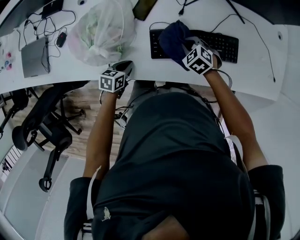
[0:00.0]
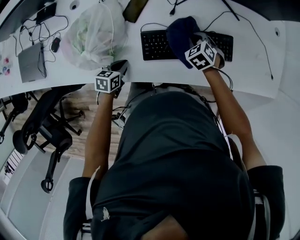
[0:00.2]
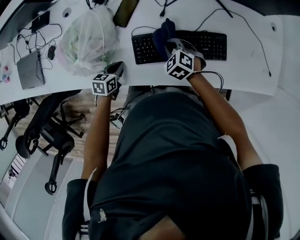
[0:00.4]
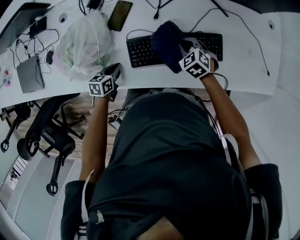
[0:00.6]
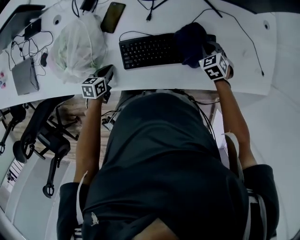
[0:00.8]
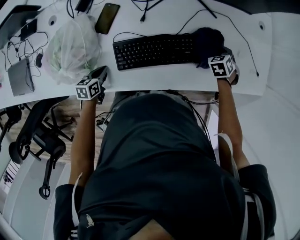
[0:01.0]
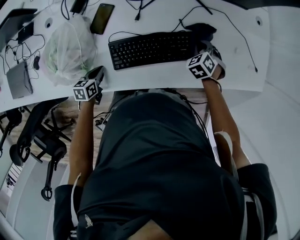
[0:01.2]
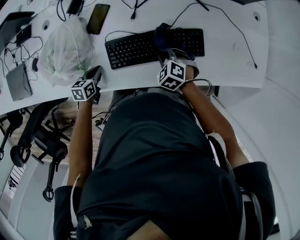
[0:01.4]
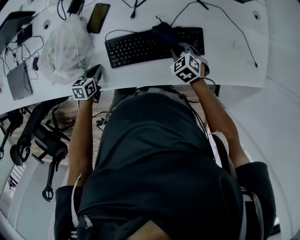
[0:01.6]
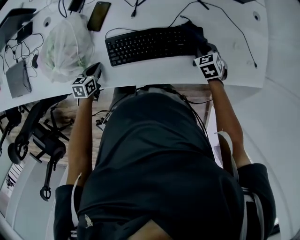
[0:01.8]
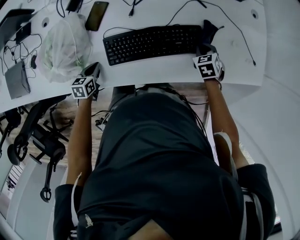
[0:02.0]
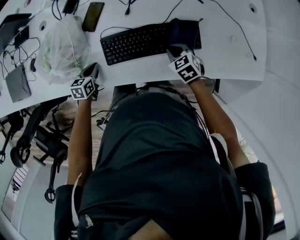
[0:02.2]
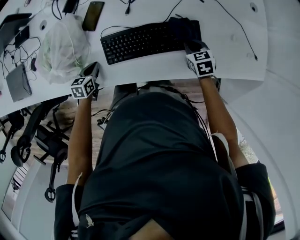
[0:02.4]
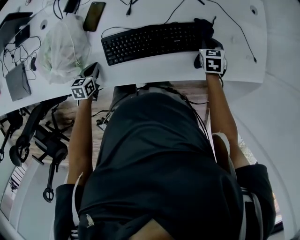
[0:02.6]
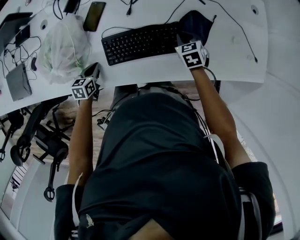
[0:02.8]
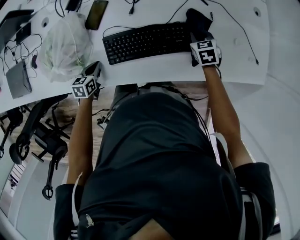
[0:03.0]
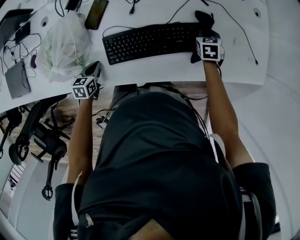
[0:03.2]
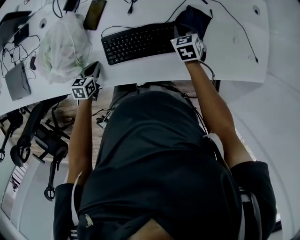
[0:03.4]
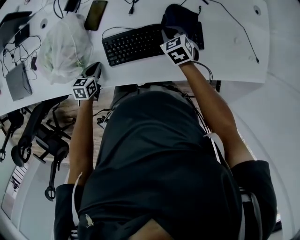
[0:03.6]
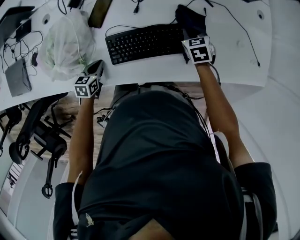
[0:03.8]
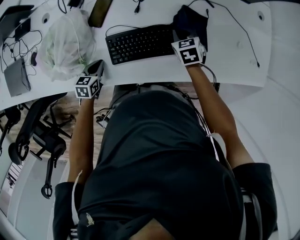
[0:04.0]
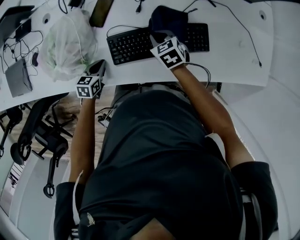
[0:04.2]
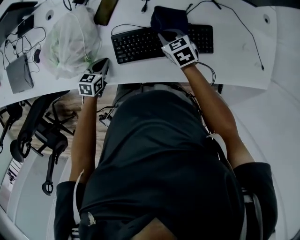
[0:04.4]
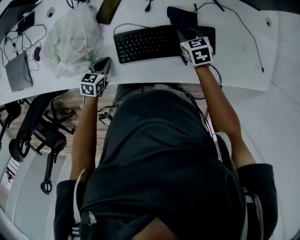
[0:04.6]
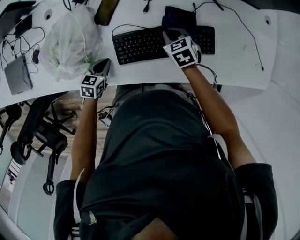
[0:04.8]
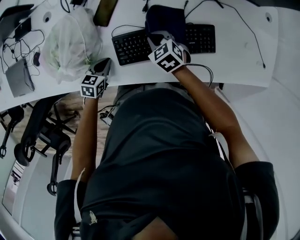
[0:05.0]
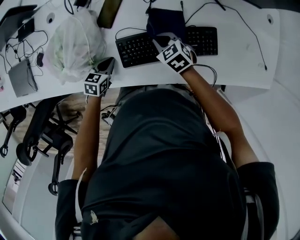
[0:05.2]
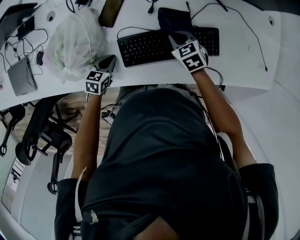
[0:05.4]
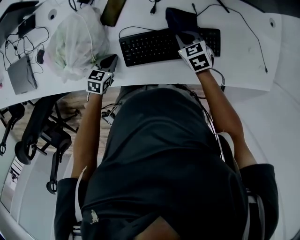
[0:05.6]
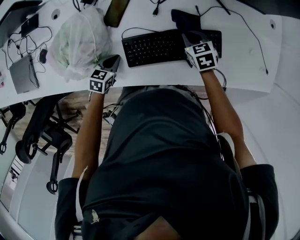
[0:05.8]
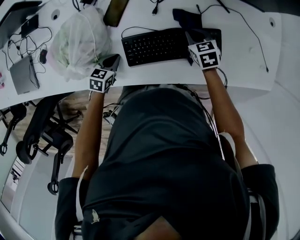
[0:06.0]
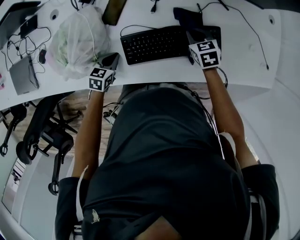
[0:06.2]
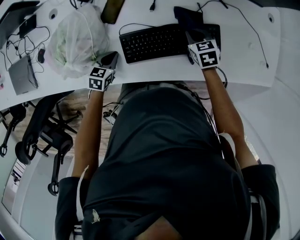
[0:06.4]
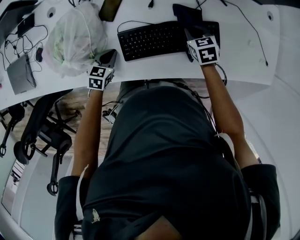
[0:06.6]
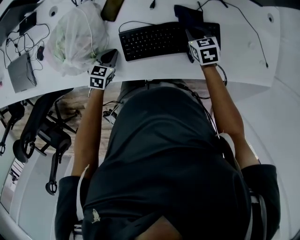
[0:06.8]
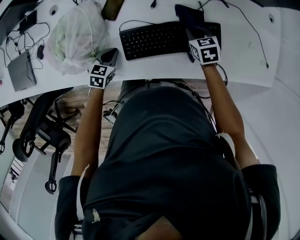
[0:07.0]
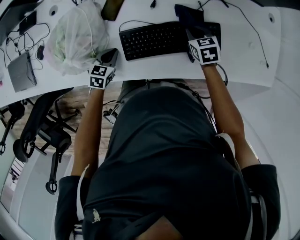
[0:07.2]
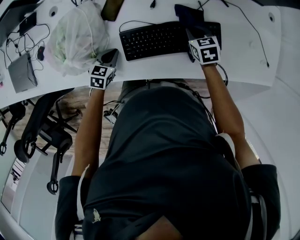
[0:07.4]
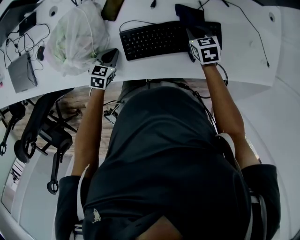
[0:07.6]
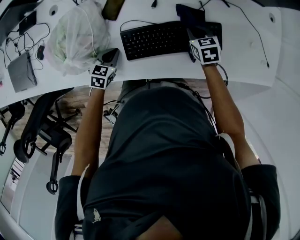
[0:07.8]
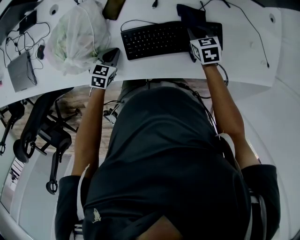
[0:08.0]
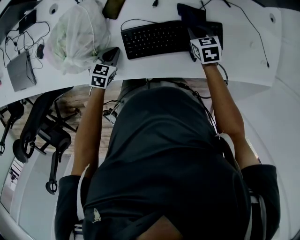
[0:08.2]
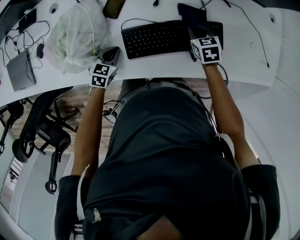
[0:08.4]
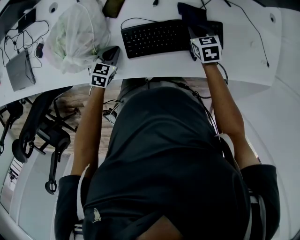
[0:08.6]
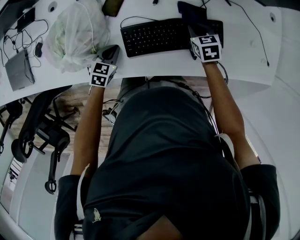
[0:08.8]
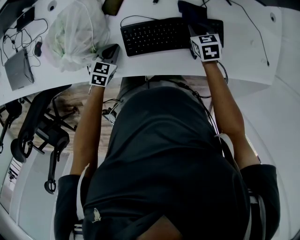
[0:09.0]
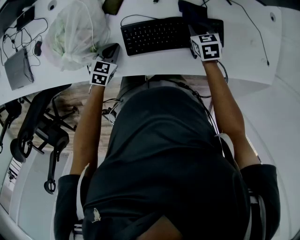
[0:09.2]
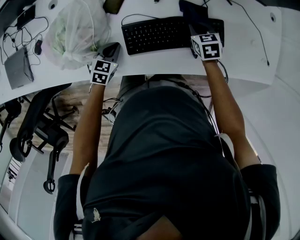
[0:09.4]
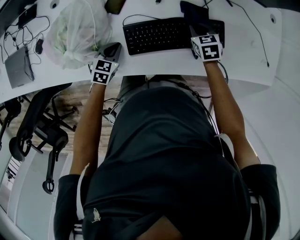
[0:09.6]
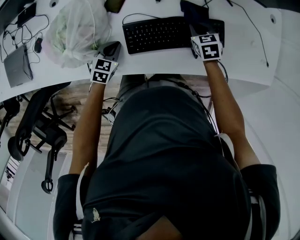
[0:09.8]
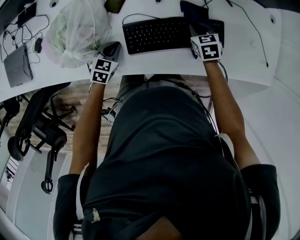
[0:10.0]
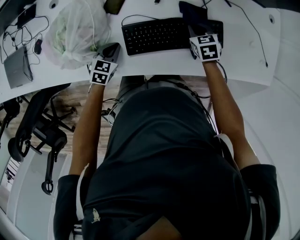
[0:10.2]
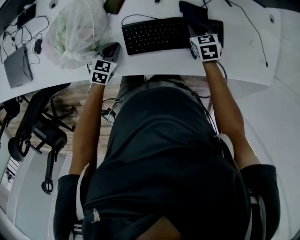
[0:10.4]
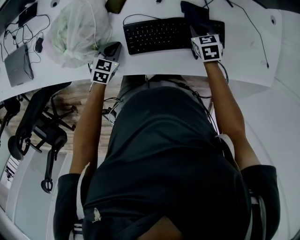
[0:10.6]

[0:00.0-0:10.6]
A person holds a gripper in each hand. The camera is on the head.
0.0 to 1.6 s: The left gripper changes place by some 5 cm.
1.6 to 3.0 s: The right gripper goes left and right, about 15 cm each way, reversing 4 times, and turns by approximately 20 degrees.
3.0 to 4.6 s: The right gripper moves left and right over some 25 cm, changing direction 4 times.
4.6 to 6.0 s: The right gripper moves about 10 cm to the left and comes back.
6.0 to 9.0 s: The grippers move only a little.
9.0 to 10.6 s: Both grippers stay put.

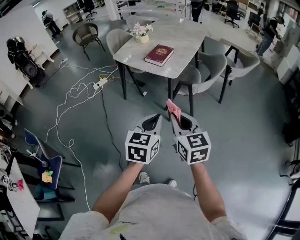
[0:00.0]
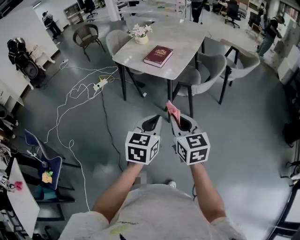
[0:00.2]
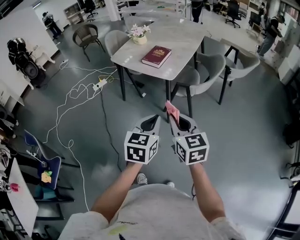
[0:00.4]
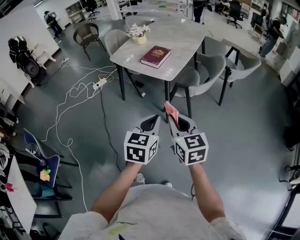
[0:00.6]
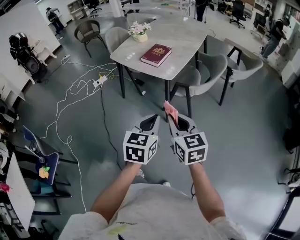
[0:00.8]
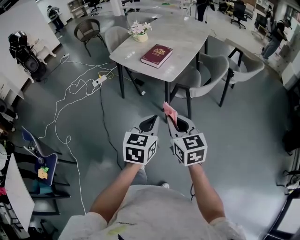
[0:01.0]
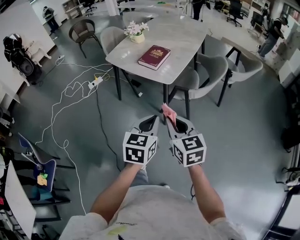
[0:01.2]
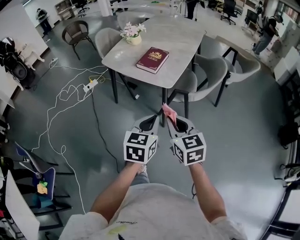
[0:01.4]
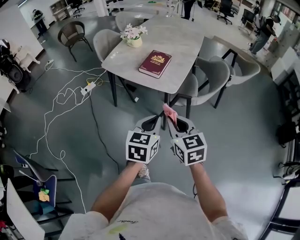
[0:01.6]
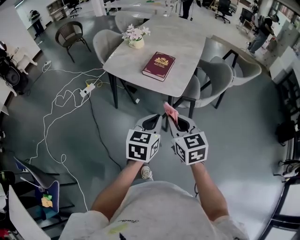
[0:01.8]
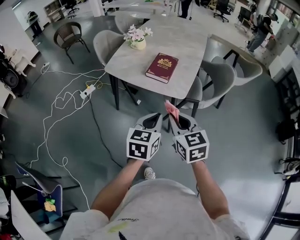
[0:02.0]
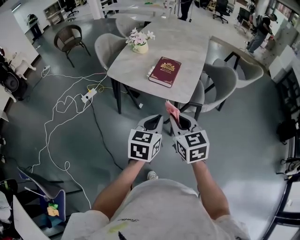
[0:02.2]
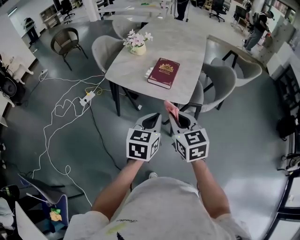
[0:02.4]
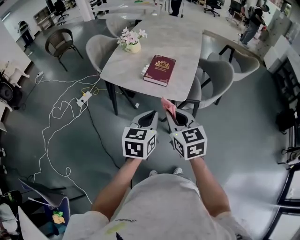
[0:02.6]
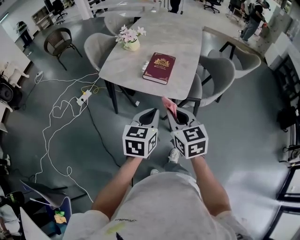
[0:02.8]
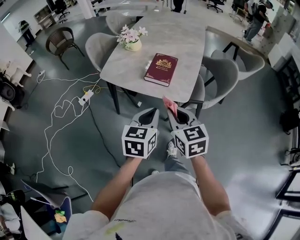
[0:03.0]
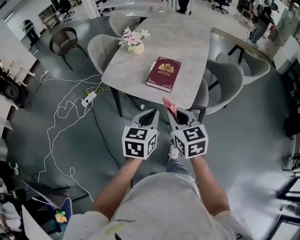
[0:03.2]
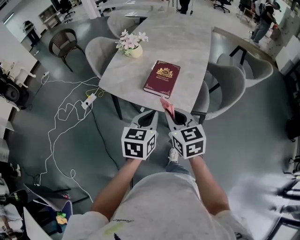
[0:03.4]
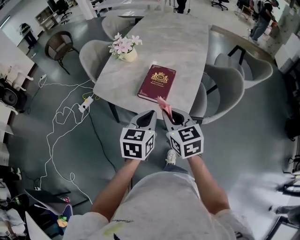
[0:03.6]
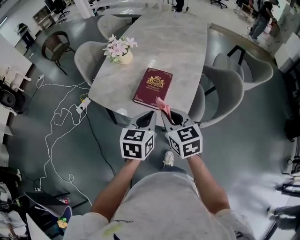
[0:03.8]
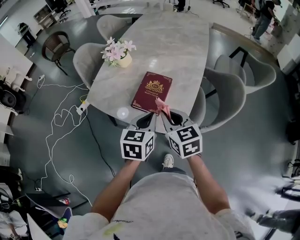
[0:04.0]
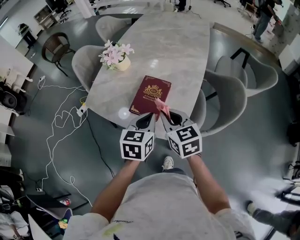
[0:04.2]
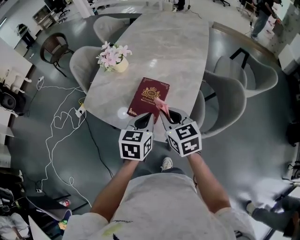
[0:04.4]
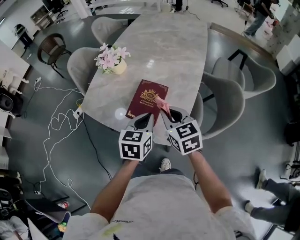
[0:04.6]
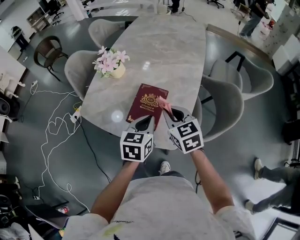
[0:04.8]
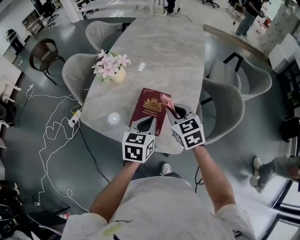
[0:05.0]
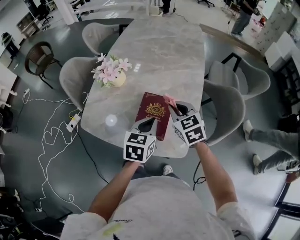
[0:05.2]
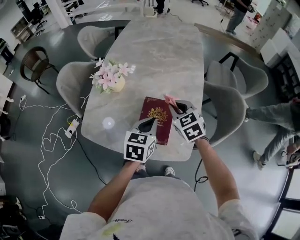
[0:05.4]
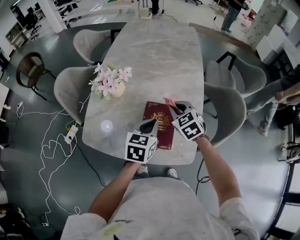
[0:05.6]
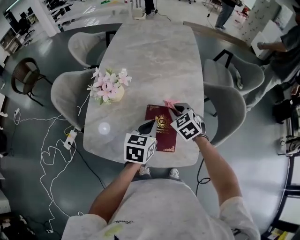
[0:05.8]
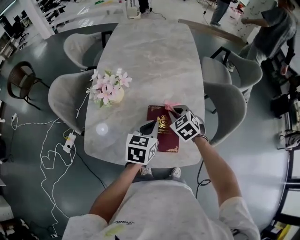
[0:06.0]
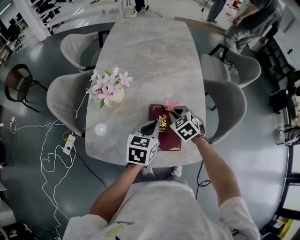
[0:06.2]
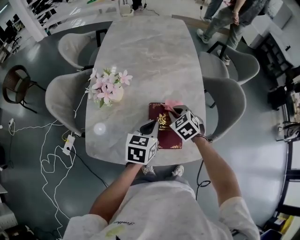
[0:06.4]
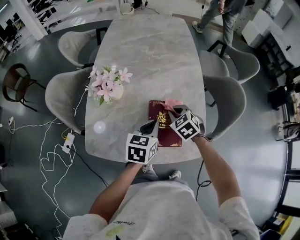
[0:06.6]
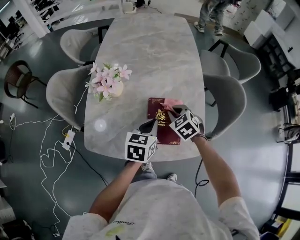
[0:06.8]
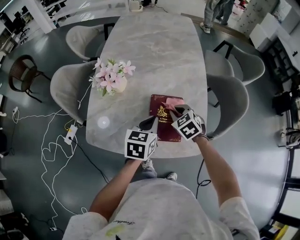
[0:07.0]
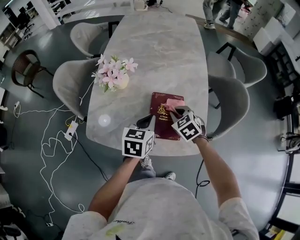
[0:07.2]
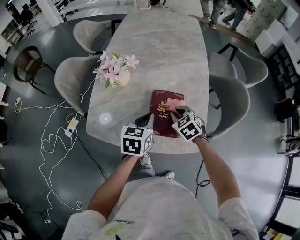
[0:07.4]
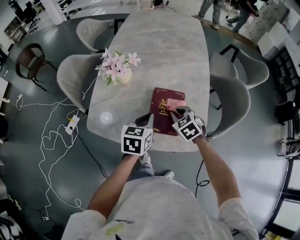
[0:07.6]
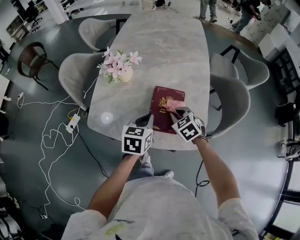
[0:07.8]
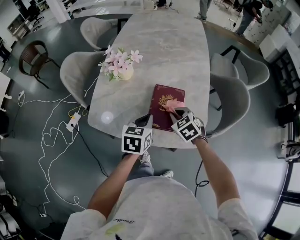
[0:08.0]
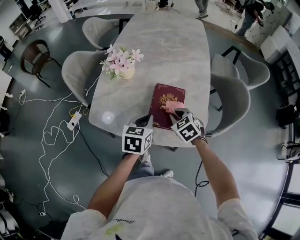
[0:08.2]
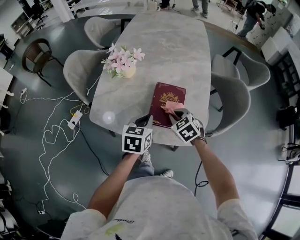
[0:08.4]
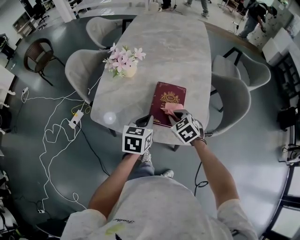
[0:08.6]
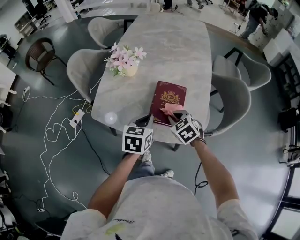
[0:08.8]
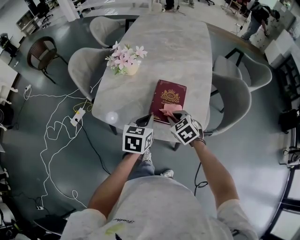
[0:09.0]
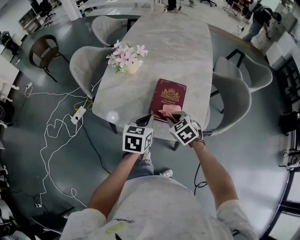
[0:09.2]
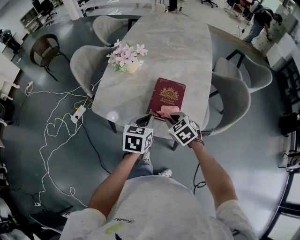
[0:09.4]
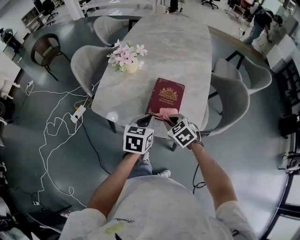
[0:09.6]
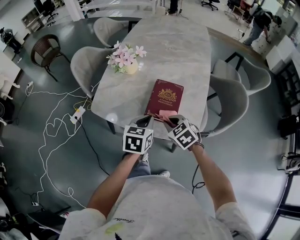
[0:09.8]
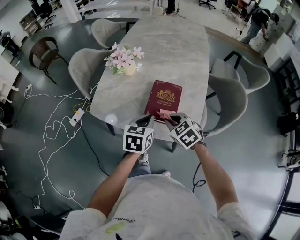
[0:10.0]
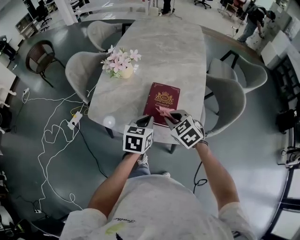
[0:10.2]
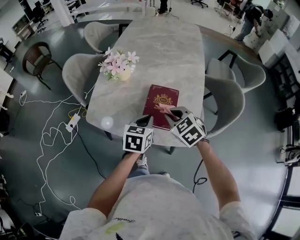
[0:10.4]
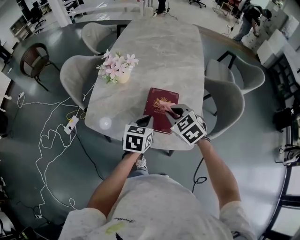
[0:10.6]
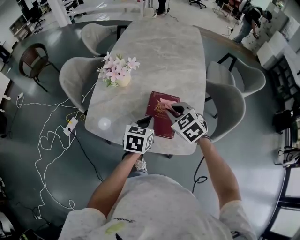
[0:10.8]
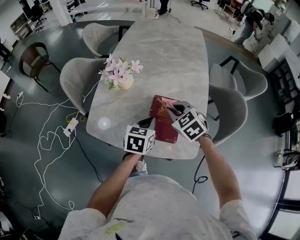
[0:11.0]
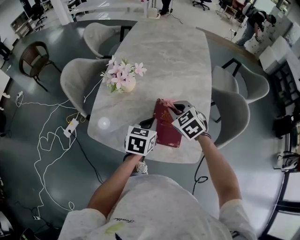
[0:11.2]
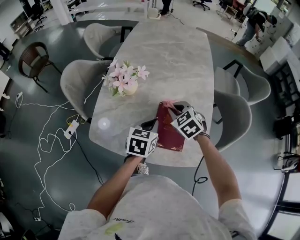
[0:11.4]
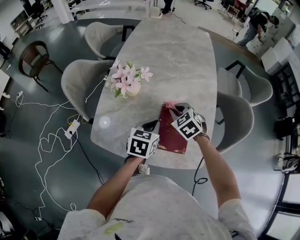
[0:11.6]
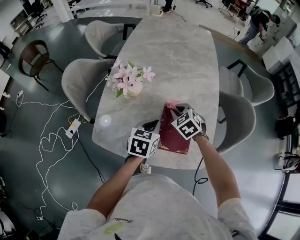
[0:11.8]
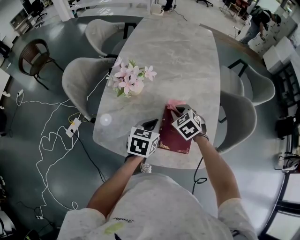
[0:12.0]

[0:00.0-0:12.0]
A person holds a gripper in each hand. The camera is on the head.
0.0 to 1.6 s: Both grippers travel together forward, about 15 cm.
1.6 to 3.0 s: Both grippers travel together forward and to the left, some 15 cm.
3.0 to 4.4 s: Both grippers travel together forward, roughly 25 cm.
4.4 to 6.0 s: The right gripper shifts roughly 20 cm forward and downward, and changes its angle by about 30 degrees. Meanwhile the left gripper travels forward and to the left by some 15 cm, and changes its angle by about 20 degrees.
6.0 to 7.6 s: Both grippers move backward, about 5 cm.
7.6 to 9.0 s: The two grippers go about 5 cm backward.
9.0 to 10.4 s: The right gripper is displaced upward by roughly 10 cm.
10.4 to 12.0 s: The right gripper goes roughly 20 cm forward and downward. The left gripper moves forward, about 10 cm.

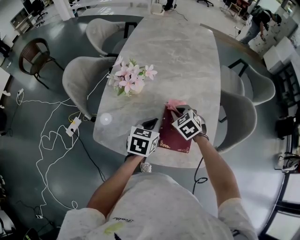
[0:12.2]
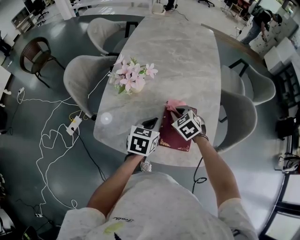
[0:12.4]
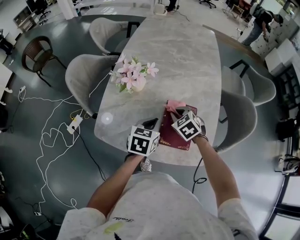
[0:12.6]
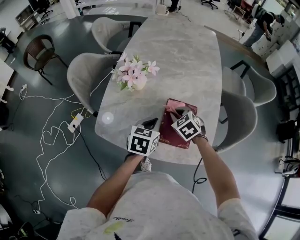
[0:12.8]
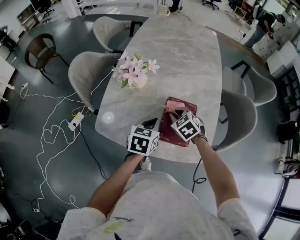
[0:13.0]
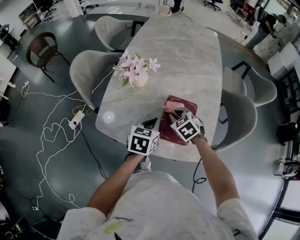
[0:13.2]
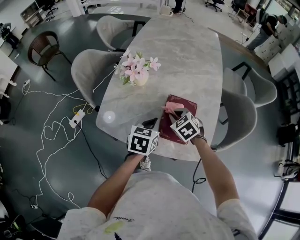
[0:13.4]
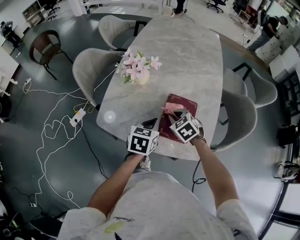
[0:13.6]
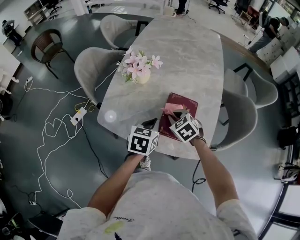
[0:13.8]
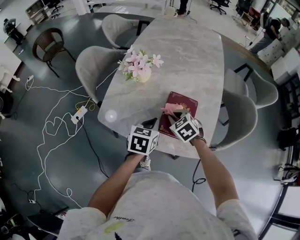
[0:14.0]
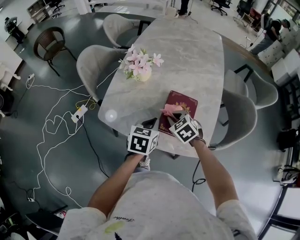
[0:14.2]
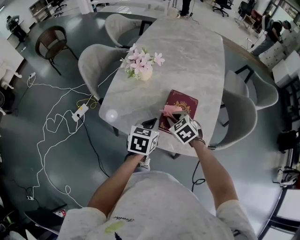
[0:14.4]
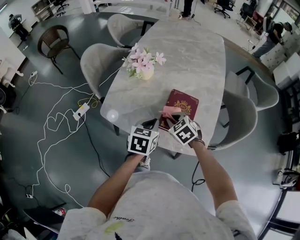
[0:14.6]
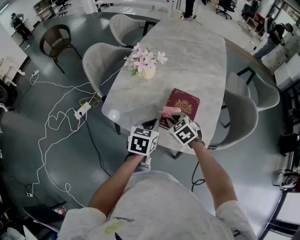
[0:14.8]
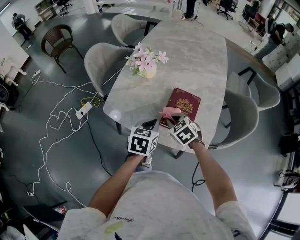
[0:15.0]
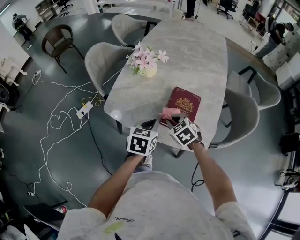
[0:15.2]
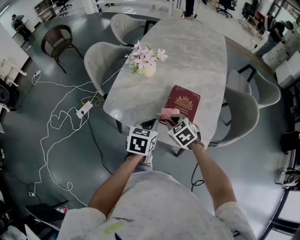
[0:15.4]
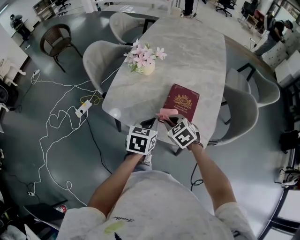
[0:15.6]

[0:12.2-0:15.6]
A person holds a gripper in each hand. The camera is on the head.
12.2 to 13.8 s: Both grippers move backward, roughly 10 cm.
13.8 to 15.6 s: The two grippers go about 5 cm backward.
